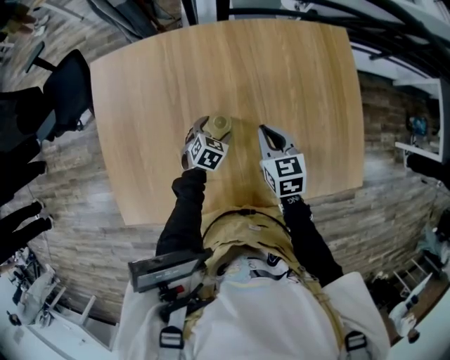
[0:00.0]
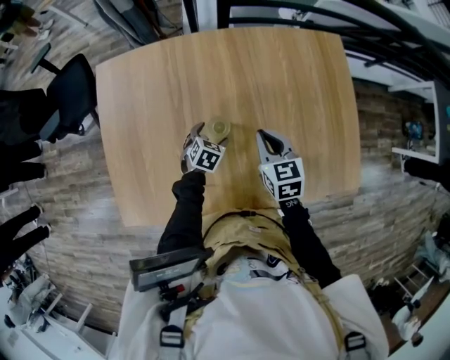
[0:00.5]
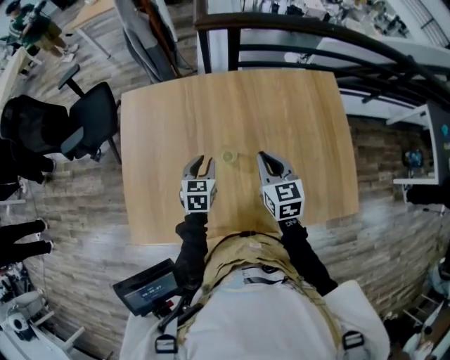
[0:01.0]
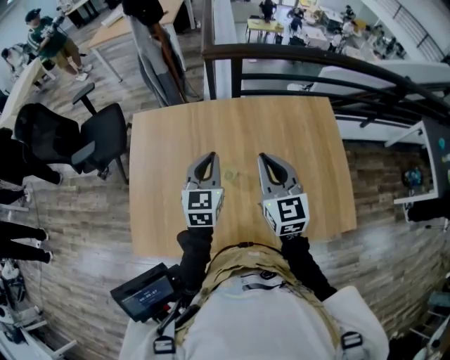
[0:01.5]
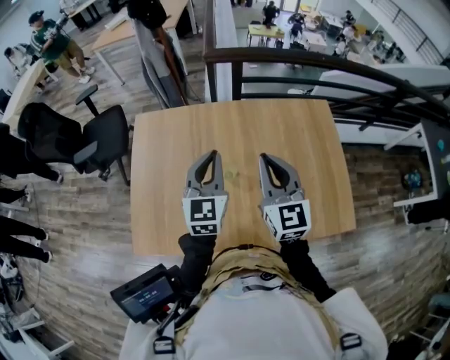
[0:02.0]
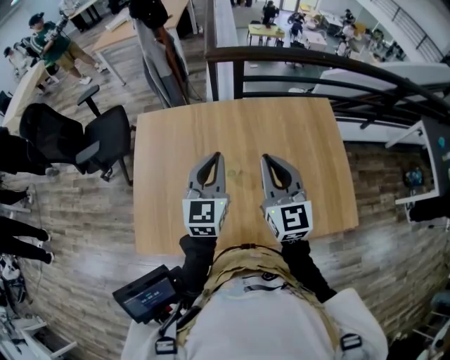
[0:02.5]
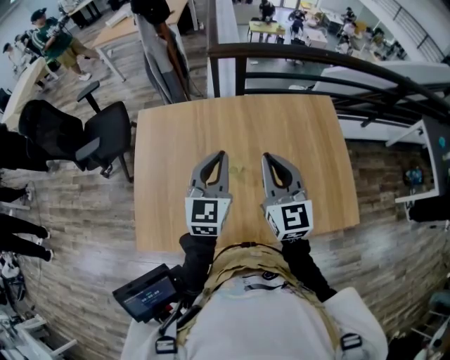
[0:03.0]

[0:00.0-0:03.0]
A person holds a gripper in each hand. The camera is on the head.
0:00.0 to 0:01.5: The grippers both shift upward by some 30 cm. The left gripper tilts its fingers about 40 degrees upward, and closes up; the right gripper angles its fingers upward, by roughly 30 degrees.
0:01.5 to 0:03.0: The left gripper shifts roughly 5 cm upward.

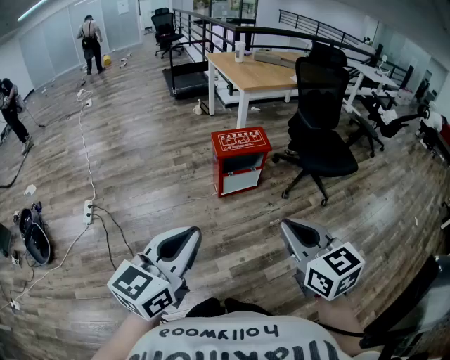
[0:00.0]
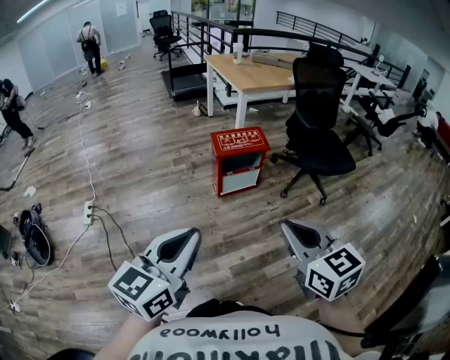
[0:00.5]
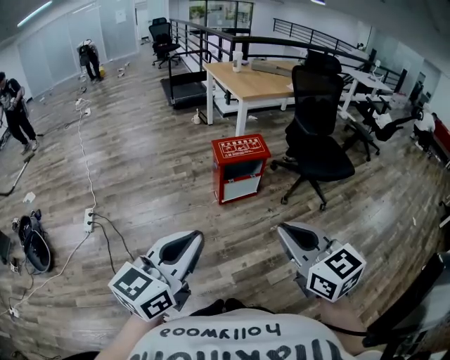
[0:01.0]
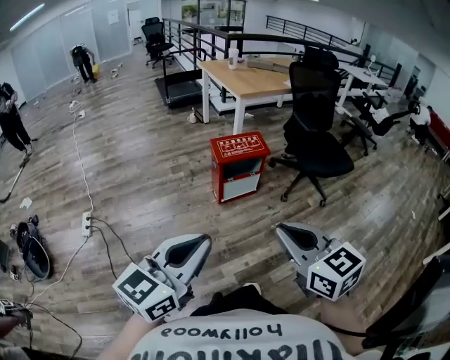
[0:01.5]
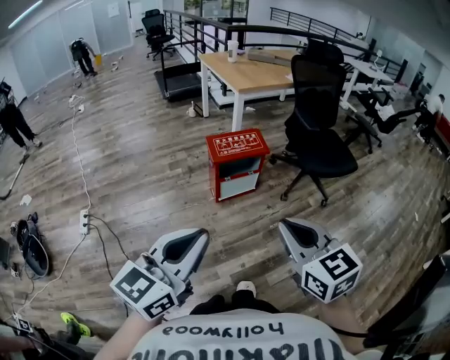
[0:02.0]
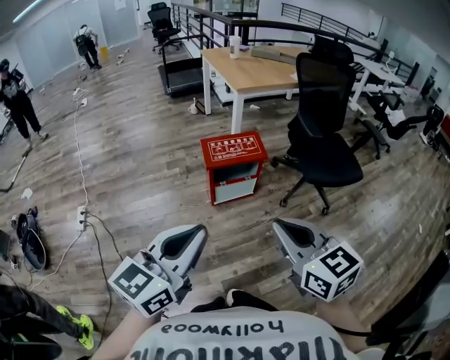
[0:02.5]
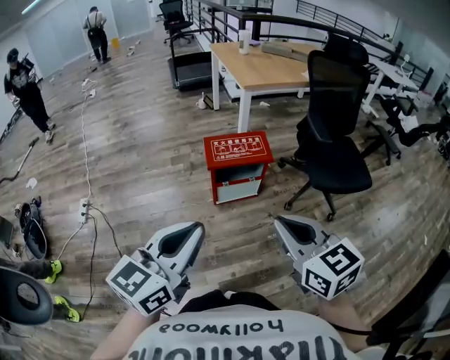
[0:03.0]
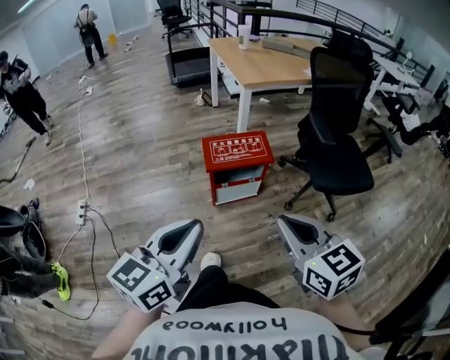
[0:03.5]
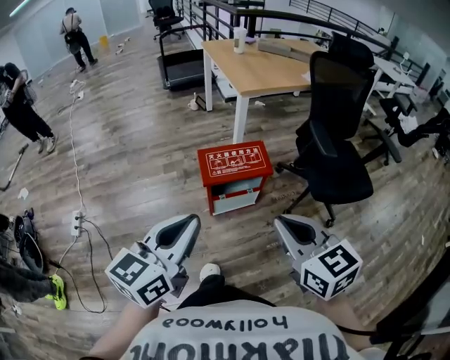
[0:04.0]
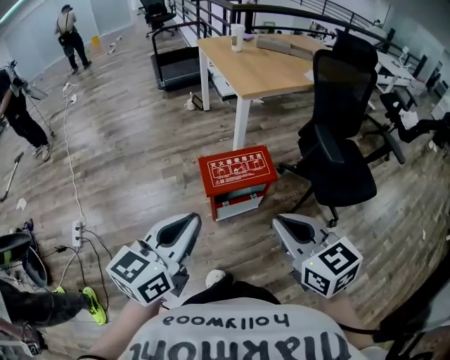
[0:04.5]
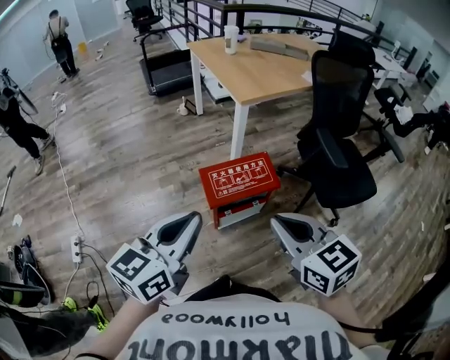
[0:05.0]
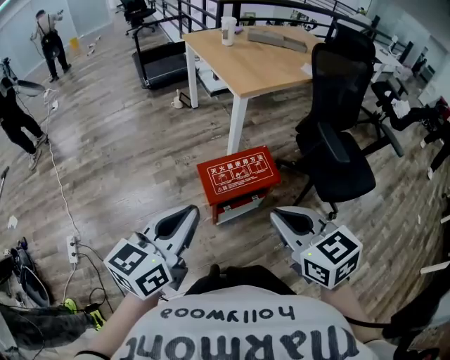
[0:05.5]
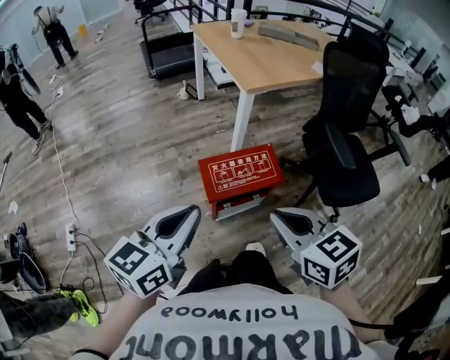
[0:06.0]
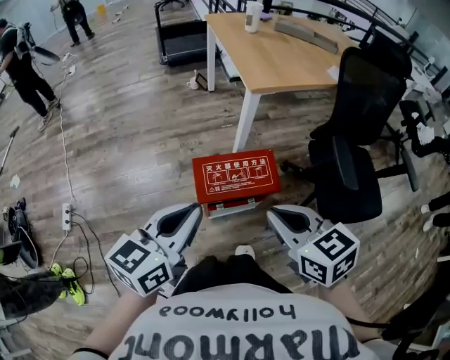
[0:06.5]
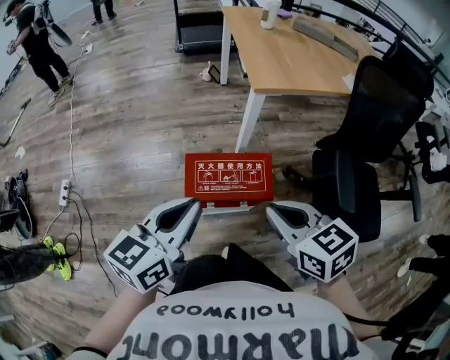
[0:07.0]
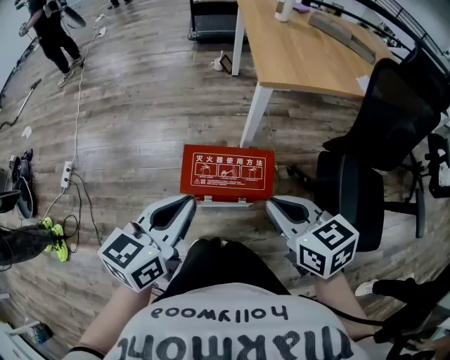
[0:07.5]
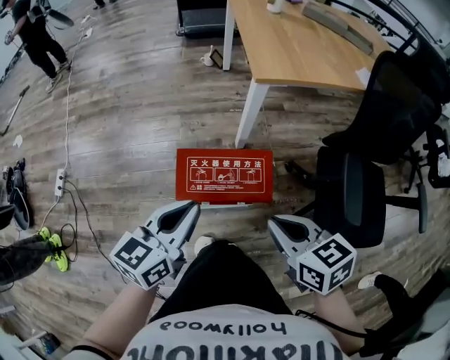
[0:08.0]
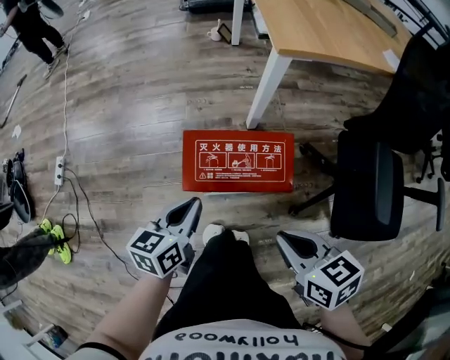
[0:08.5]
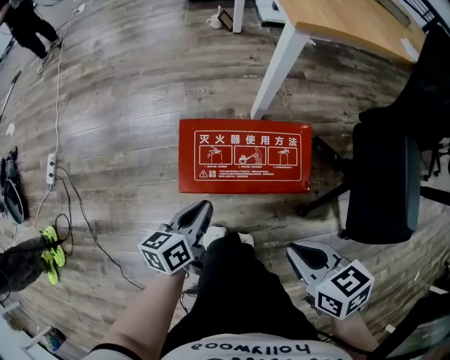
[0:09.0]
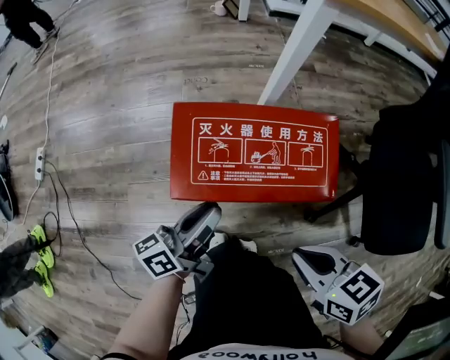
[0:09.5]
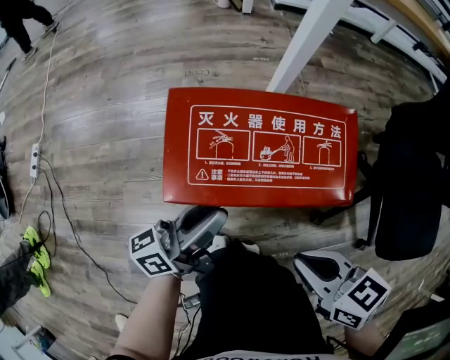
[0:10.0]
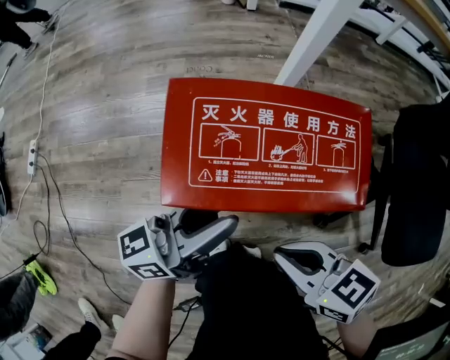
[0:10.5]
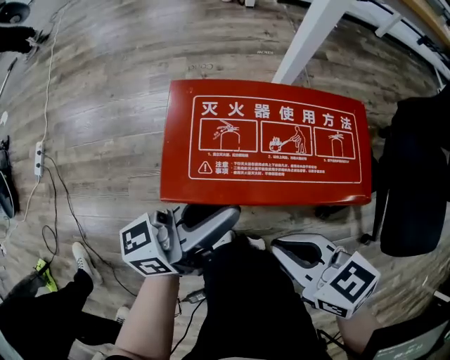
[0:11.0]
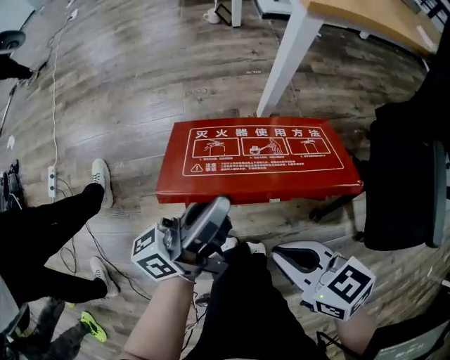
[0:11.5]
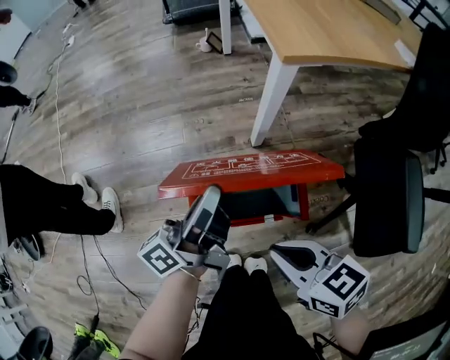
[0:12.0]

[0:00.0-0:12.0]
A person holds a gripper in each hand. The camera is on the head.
0:00.0 to 0:02.0: The left gripper changes place by approximately 5 cm.
0:02.0 to 0:04.0: The grippers both shift forward by approximately 25 cm.
0:04.0 to 0:06.0: The right gripper moves forward and to the left, some 15 cm; the left gripper is displaced forward by approximately 20 cm.
0:06.0 to 0:08.0: The left gripper travels to the right, downward and forward by about 20 cm; the right gripper heads to the right, forward and downward, covering roughly 20 cm.
0:08.0 to 0:10.0: Both grippers move downward, approximately 30 cm. The left gripper changes its angle by roughly 40 degrees, and opens up.
0:10.0 to 0:12.0: Both grippers move upward and forward, about 20 cm.

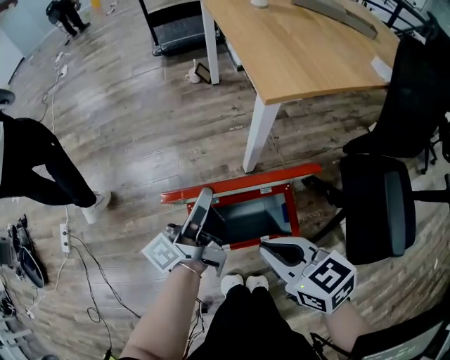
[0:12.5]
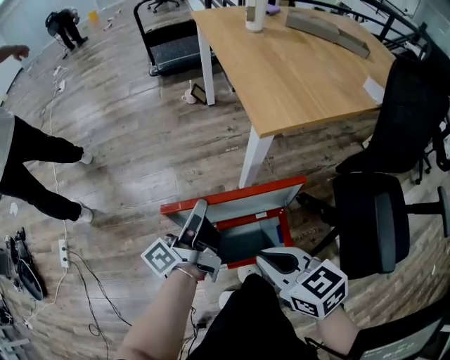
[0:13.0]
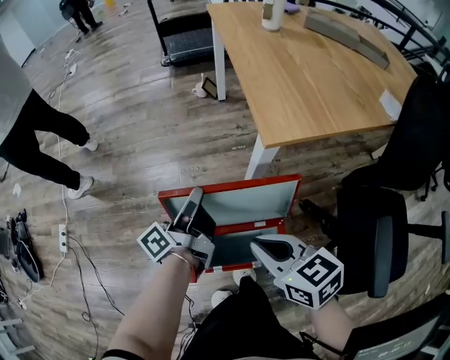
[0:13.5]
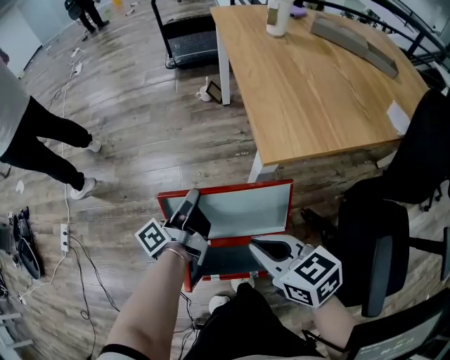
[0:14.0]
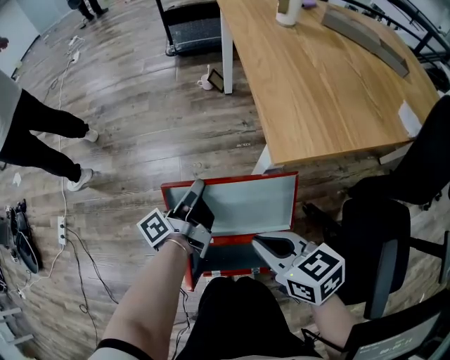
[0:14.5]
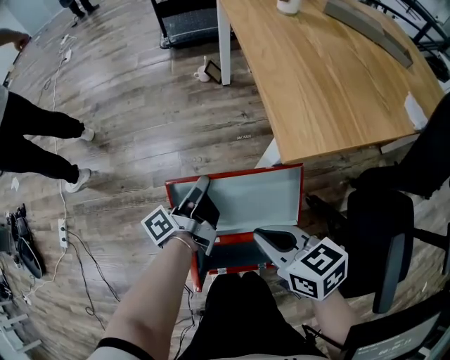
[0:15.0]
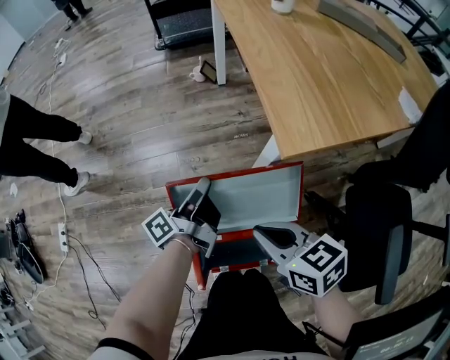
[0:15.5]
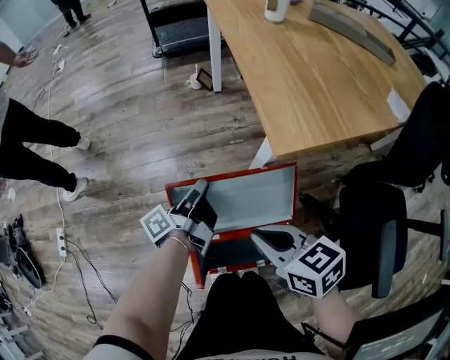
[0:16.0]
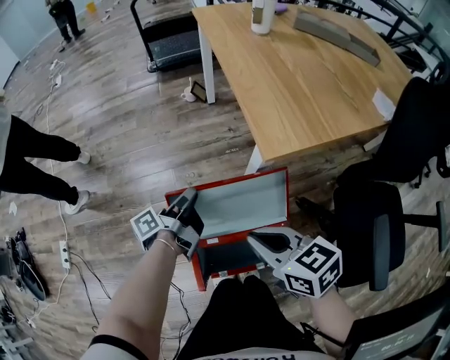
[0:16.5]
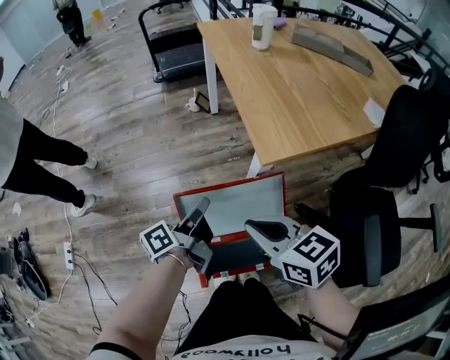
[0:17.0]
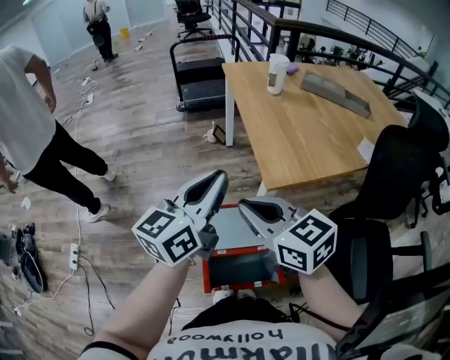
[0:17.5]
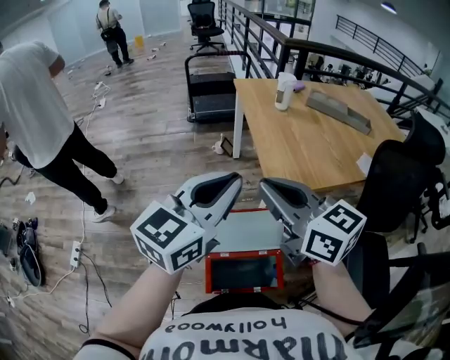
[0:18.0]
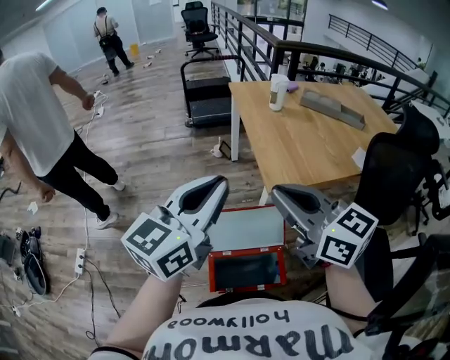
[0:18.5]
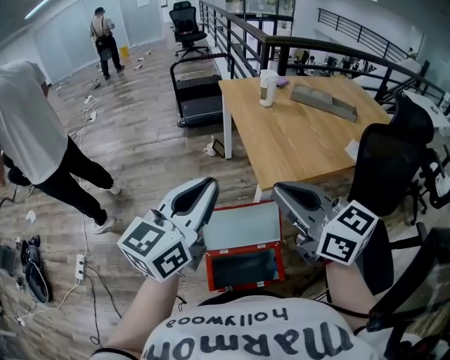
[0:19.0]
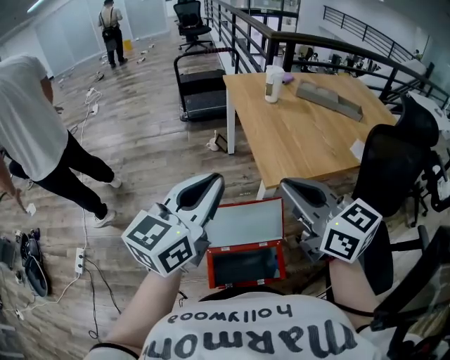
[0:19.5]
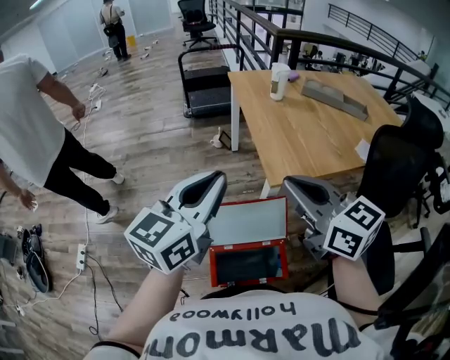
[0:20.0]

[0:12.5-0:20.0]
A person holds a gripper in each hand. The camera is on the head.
0:12.5 to 0:14.5: The right gripper is displaced forward and to the right by roughly 15 cm. The left gripper shifts approximately 15 cm forward and downward.
0:14.5 to 0:16.5: The right gripper shifts by roughly 5 cm.
0:16.5 to 0:18.0: The grippers both shift upward by roughly 35 cm. The right gripper swivels roughly 30 degrees. The left gripper twists approximately 90 degrees clockwise, seen from behind.
0:18.0 to 0:20.0: The right gripper changes place by some 5 cm.

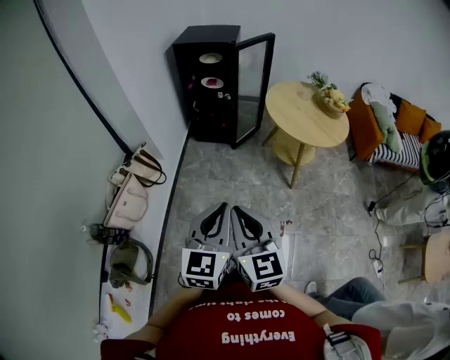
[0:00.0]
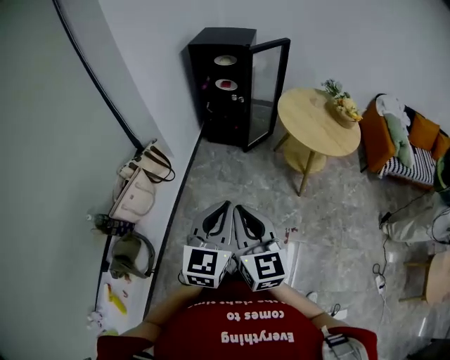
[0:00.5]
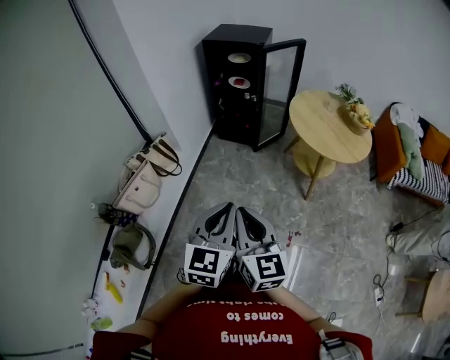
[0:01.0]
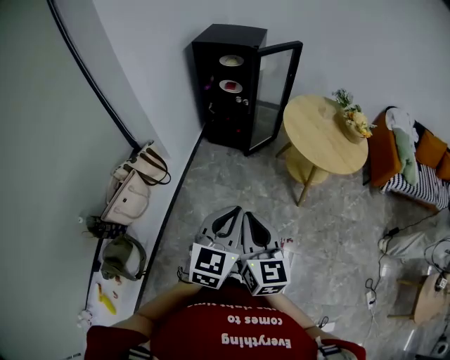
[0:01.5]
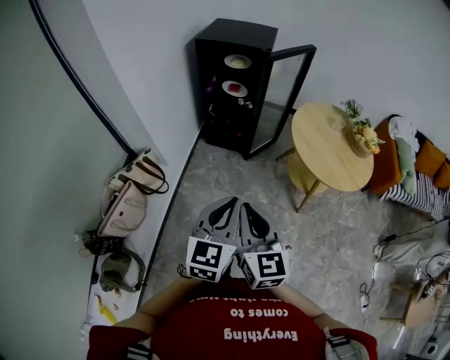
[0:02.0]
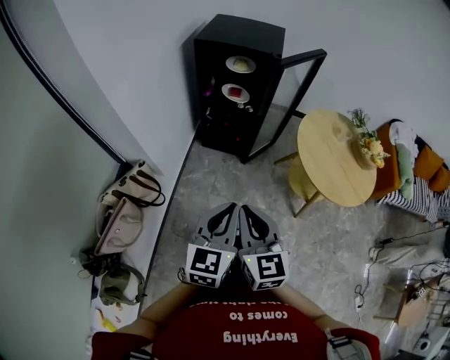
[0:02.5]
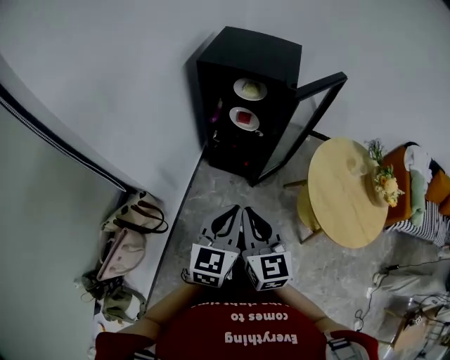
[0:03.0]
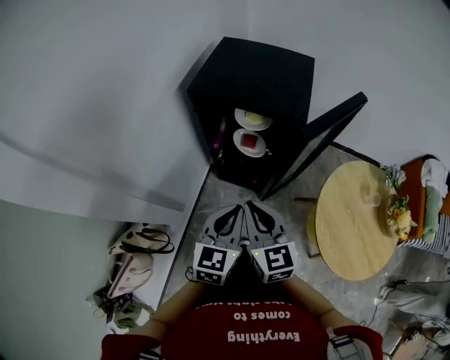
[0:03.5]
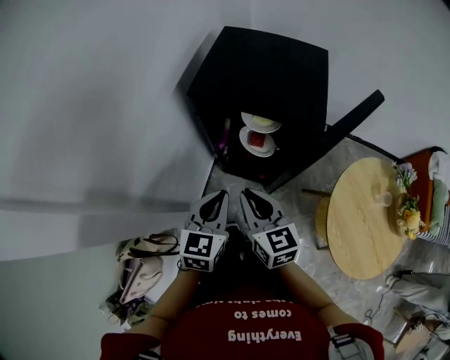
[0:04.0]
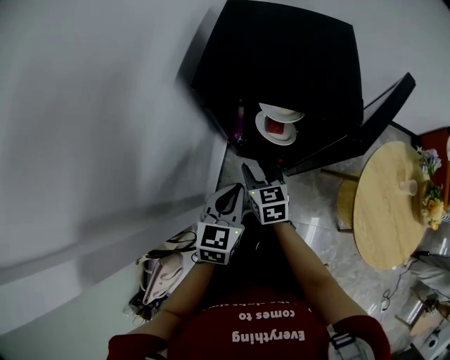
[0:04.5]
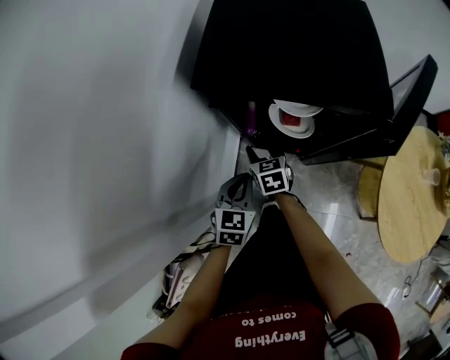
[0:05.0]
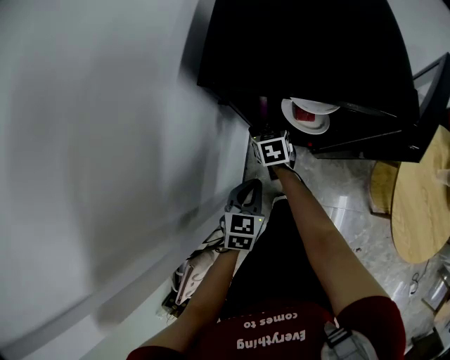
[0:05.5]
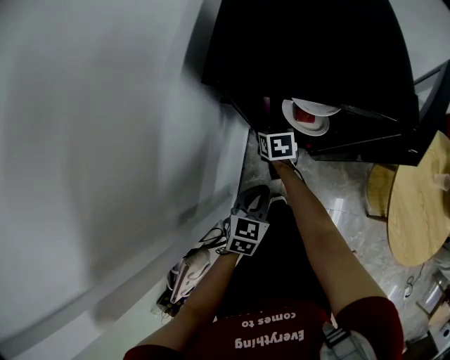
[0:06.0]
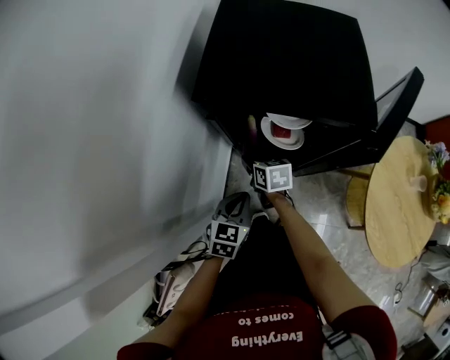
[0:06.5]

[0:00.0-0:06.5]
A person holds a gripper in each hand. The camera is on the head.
0:00.0 to 0:02.0: Both grippers move forward, about 20 cm.
0:02.0 to 0:04.5: The pair of grippers is taken forward, about 60 cm. The right gripper rotates about 30 degrees, and opens up.
0:04.5 to 0:06.5: The left gripper heads downward, covering approximately 10 cm. The right gripper shifts about 10 cm downward and forward, and swivels about 20 degrees.
